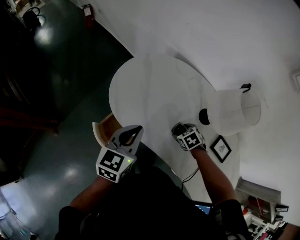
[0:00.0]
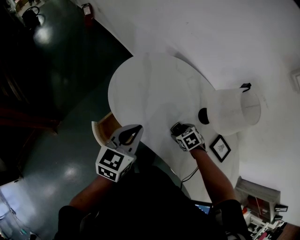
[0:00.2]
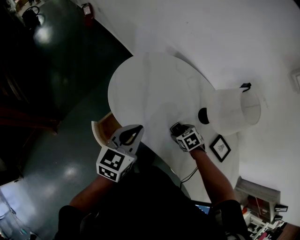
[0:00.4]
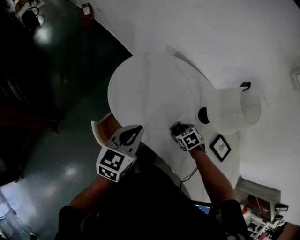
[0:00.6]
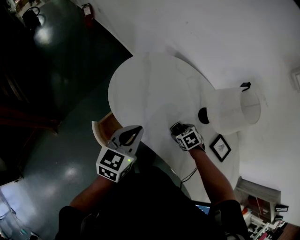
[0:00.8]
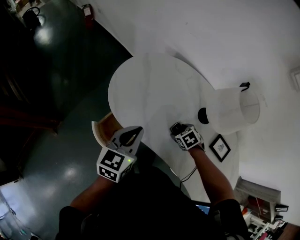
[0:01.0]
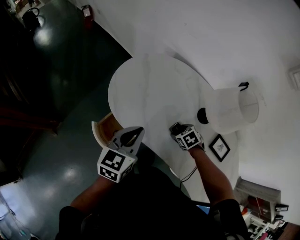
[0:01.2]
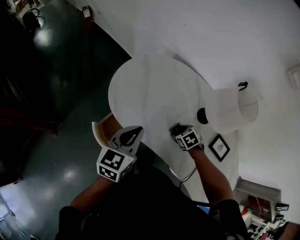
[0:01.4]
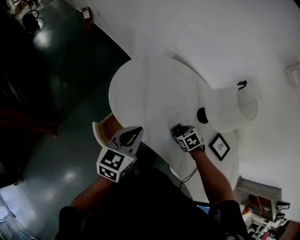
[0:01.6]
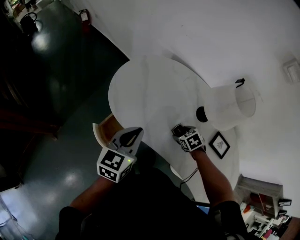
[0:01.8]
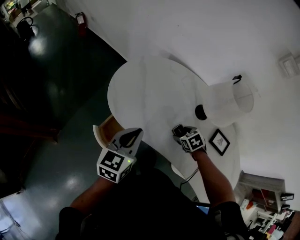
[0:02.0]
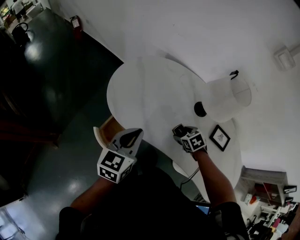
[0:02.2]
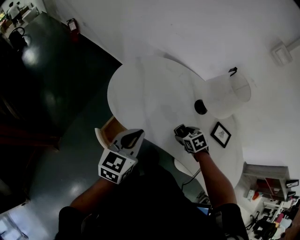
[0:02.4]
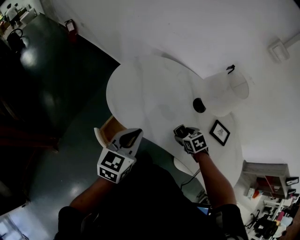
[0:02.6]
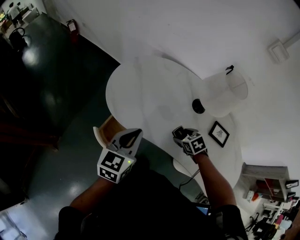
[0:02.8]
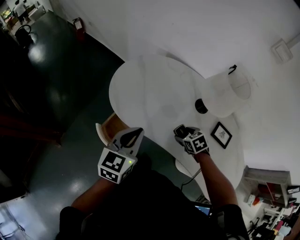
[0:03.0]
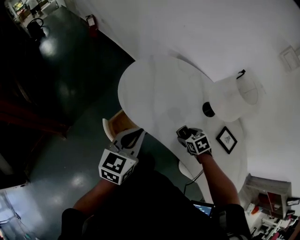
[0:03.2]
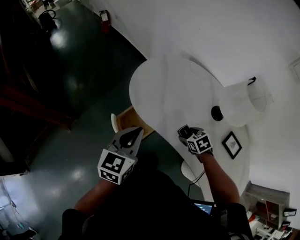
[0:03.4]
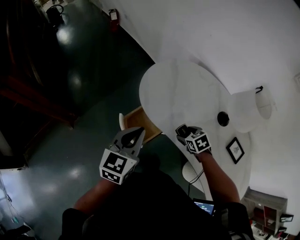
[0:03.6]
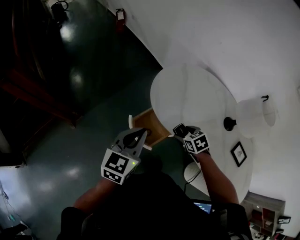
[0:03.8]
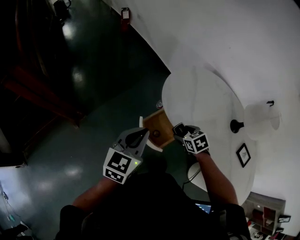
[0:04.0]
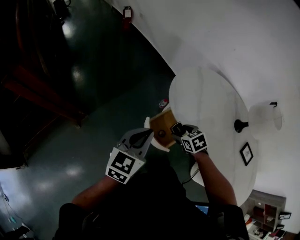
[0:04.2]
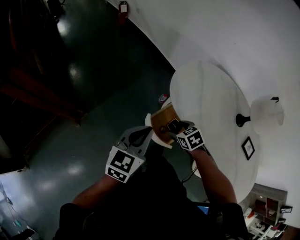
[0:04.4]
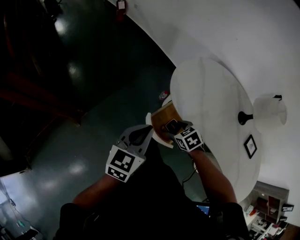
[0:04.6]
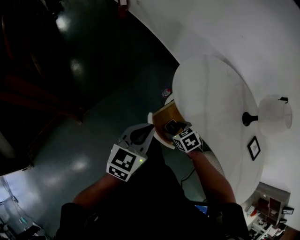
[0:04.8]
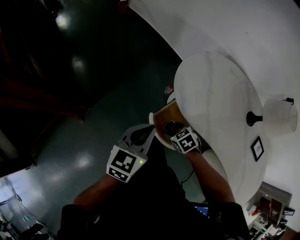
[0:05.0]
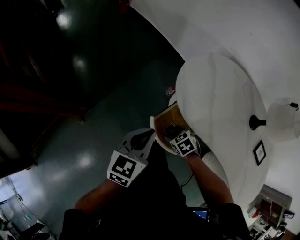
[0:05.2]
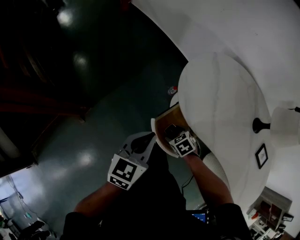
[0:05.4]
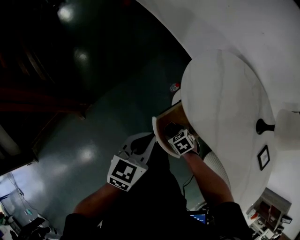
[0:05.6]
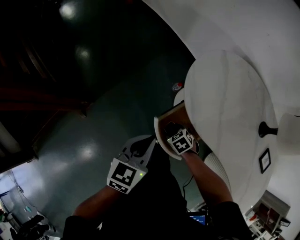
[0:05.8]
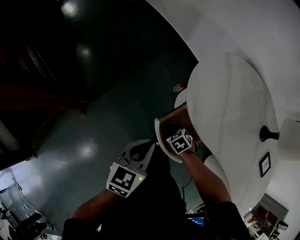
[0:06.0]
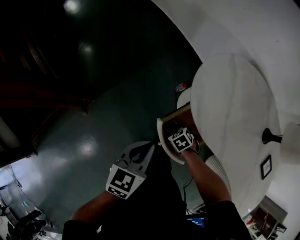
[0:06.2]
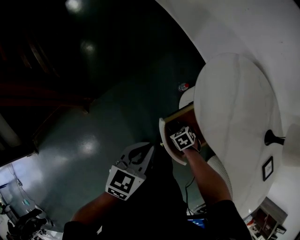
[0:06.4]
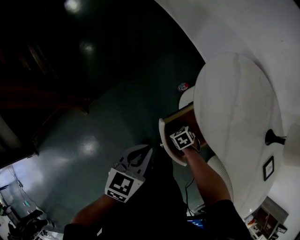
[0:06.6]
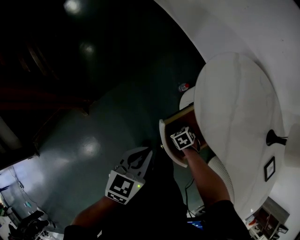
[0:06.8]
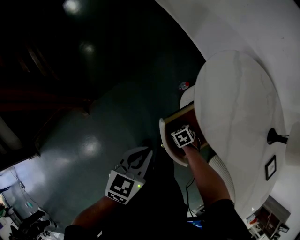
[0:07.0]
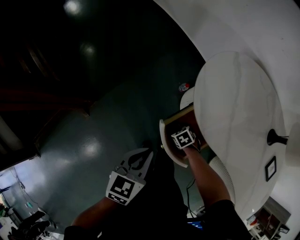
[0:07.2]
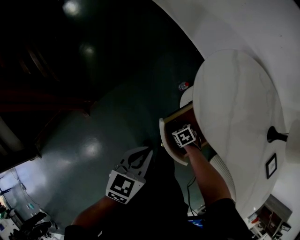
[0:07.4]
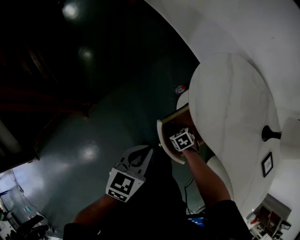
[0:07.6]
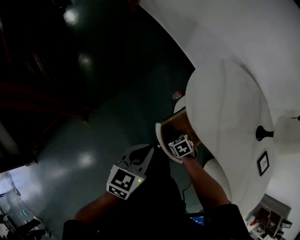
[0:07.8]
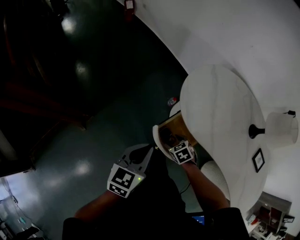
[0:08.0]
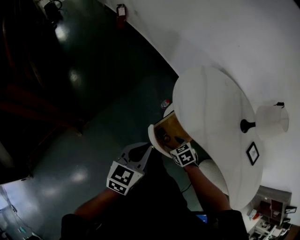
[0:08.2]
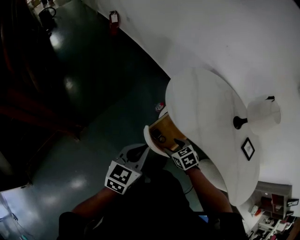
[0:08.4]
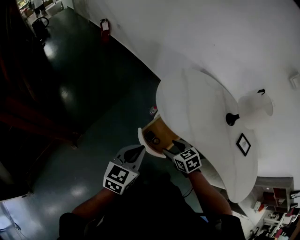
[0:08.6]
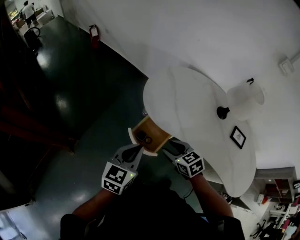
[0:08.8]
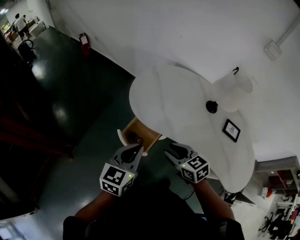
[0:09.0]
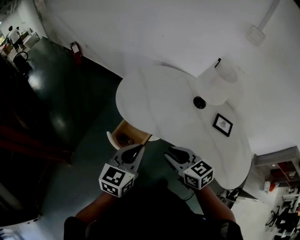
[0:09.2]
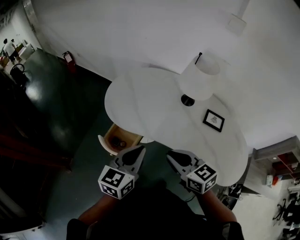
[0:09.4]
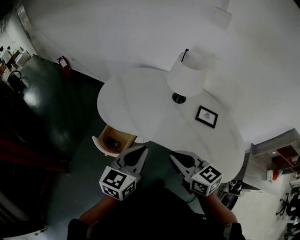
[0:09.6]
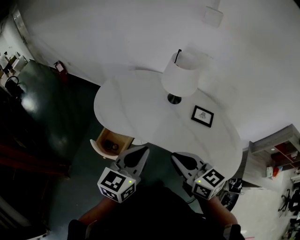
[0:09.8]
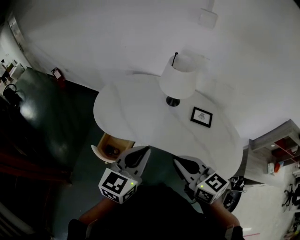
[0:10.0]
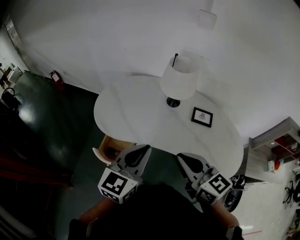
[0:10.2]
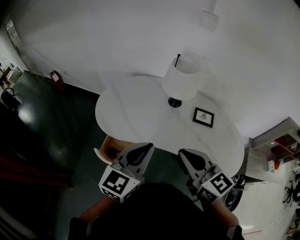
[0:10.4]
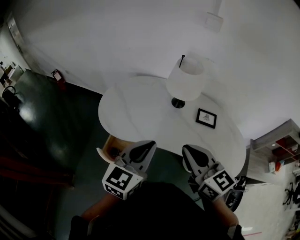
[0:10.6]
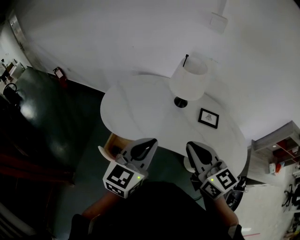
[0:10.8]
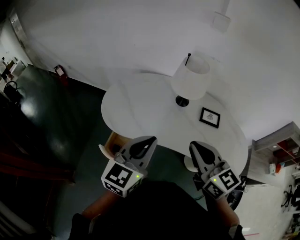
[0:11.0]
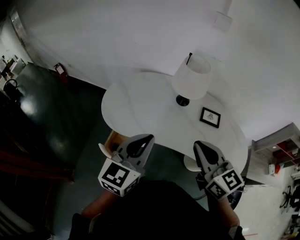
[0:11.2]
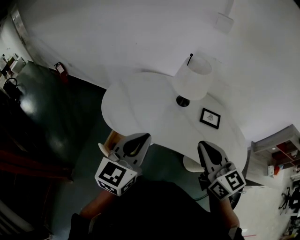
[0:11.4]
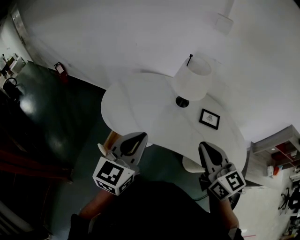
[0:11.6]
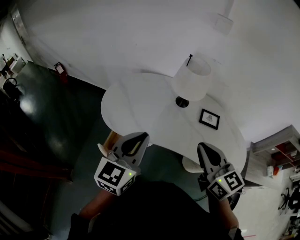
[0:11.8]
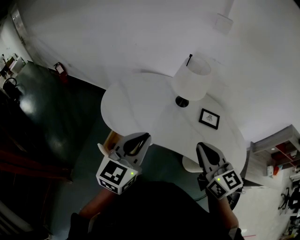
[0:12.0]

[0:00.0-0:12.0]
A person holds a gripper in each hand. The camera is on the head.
0:00.0 to 0:01.6: The grippers make only small movements.
0:01.6 to 0:03.0: The right gripper is displaced backward by some 5 cm.
0:03.0 to 0:04.4: Both grippers travel together to the left, some 30 cm.
0:04.4 to 0:06.0: The left gripper shifts approximately 10 cm downward. The right gripper travels downward by approximately 20 cm.
0:07.6 to 0:09.0: The left gripper ends up roughly 20 cm from where it was; the right gripper shifts approximately 35 cm upward, tips its fingers upward by some 40 degrees, and closes.
0:09.0 to 0:10.4: The two grippers go about 25 cm to the right and upward. The left gripper swivels some 30 degrees. Meanwhile the right gripper rotates roughly 40 degrees, and closes up.
0:10.4 to 0:12.0: The left gripper changes place by roughly 5 cm.

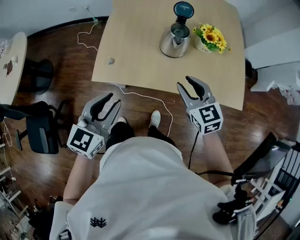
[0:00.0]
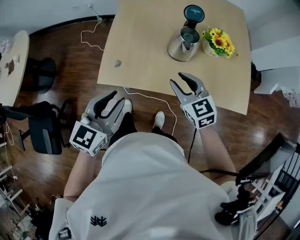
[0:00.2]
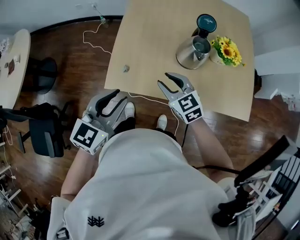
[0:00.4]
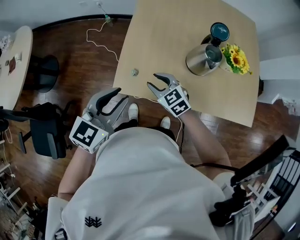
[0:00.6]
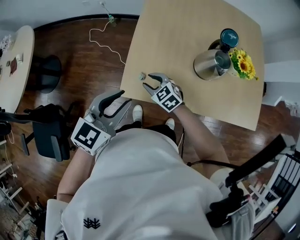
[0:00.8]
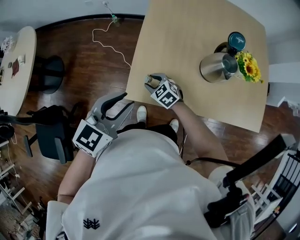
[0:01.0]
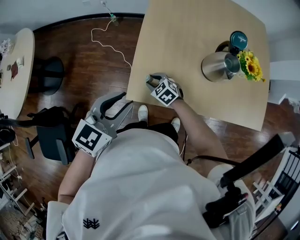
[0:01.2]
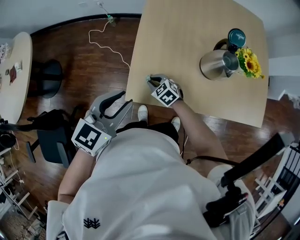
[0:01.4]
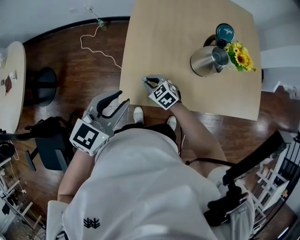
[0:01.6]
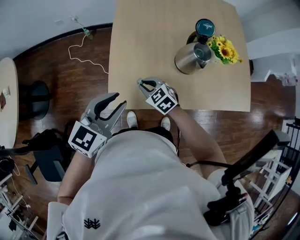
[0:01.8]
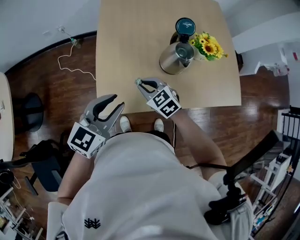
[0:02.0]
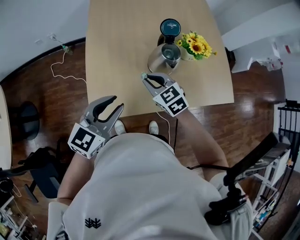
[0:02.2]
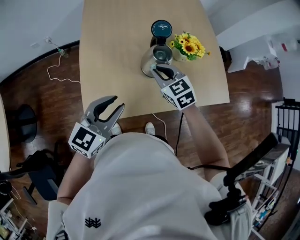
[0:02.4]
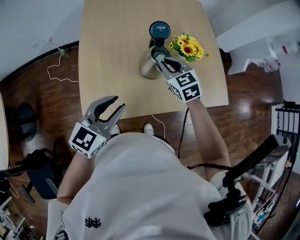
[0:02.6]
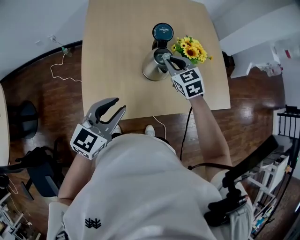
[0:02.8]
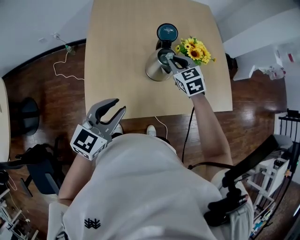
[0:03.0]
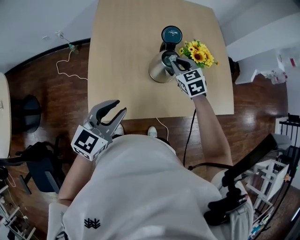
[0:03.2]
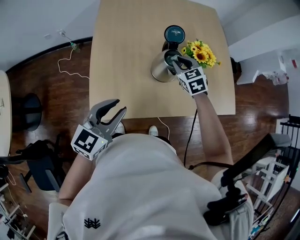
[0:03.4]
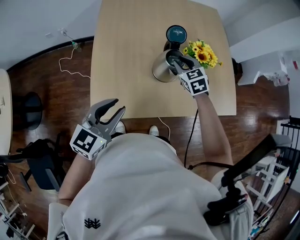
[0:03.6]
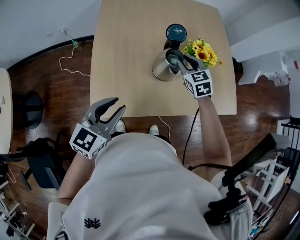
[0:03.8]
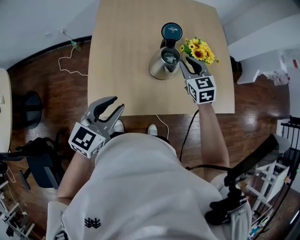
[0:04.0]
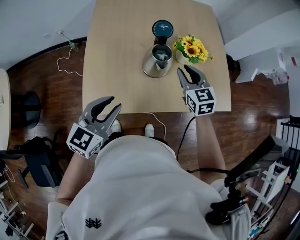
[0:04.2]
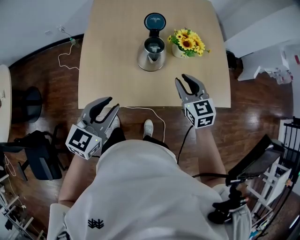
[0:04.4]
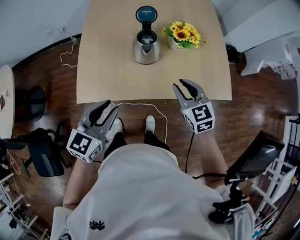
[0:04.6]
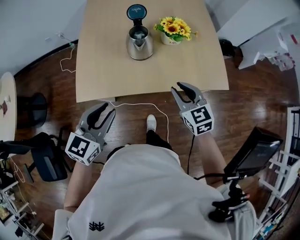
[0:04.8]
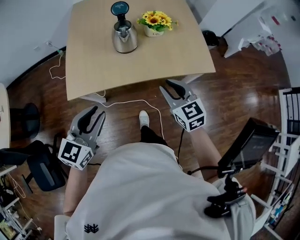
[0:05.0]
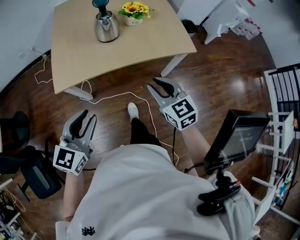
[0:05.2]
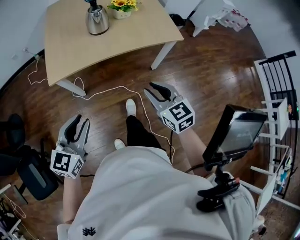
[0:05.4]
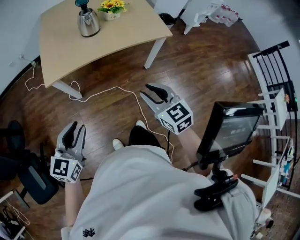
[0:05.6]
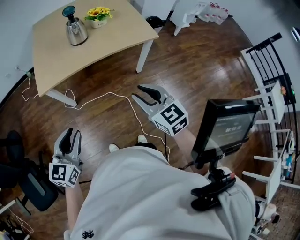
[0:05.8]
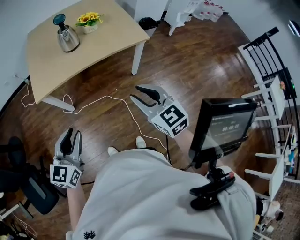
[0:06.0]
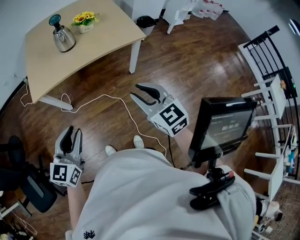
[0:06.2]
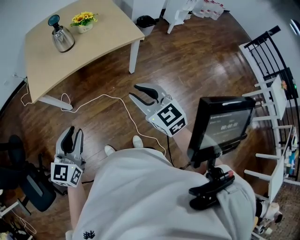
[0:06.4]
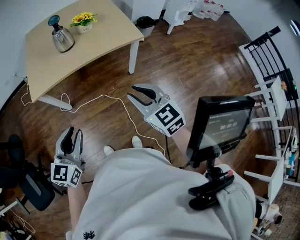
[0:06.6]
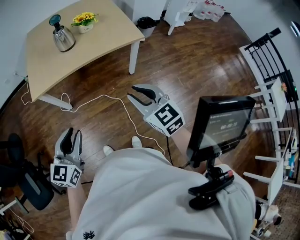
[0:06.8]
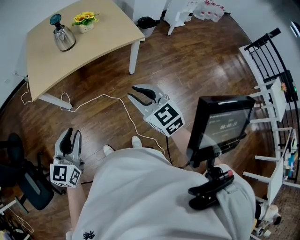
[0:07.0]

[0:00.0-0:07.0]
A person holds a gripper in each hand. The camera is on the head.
0:00.0 to 0:01.4: The right gripper shifts approximately 40 cm to the left, downward and forward, swivels roughly 30 degrees, and closes up, while the left gripper heads forward and to the left, covering approximately 20 cm.
0:01.4 to 0:02.8: The right gripper changes place by some 40 cm, and swivels roughly 40 degrees, while the left gripper ends up approximately 20 cm from where it was.
0:02.8 to 0:04.2: The right gripper is displaced to the right by some 5 cm.
0:04.2 to 0:05.6: Both grippers are carried backward, some 50 cm.
0:05.6 to 0:07.0: The left gripper moves to the right, roughly 15 cm. Meanwhile the right gripper goes approximately 15 cm to the right, backward and upward.

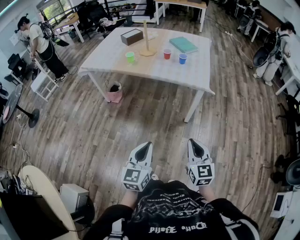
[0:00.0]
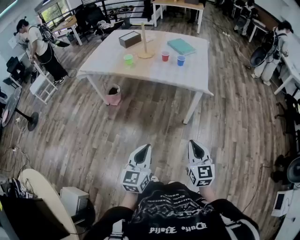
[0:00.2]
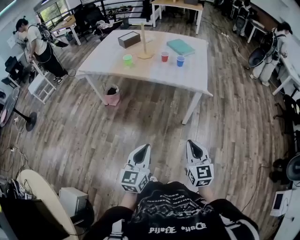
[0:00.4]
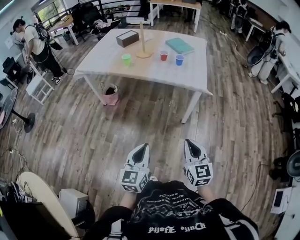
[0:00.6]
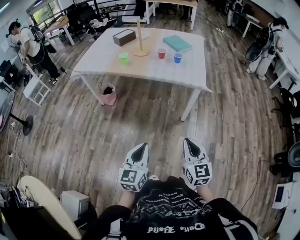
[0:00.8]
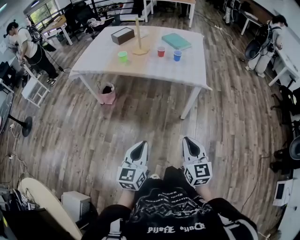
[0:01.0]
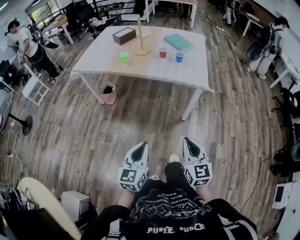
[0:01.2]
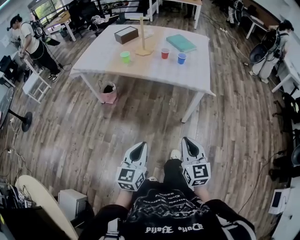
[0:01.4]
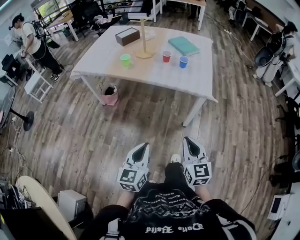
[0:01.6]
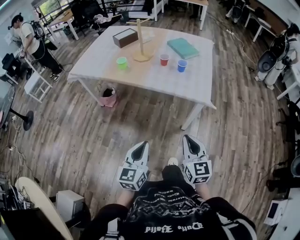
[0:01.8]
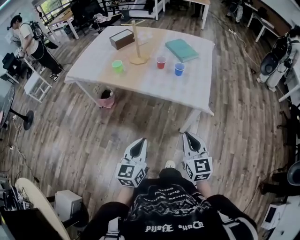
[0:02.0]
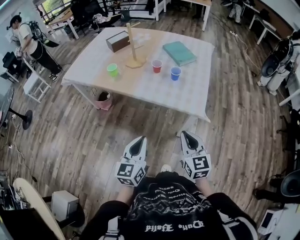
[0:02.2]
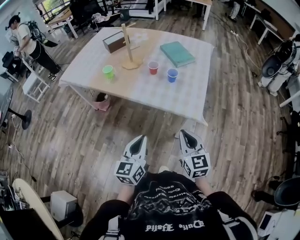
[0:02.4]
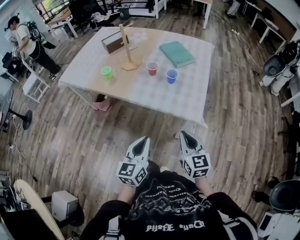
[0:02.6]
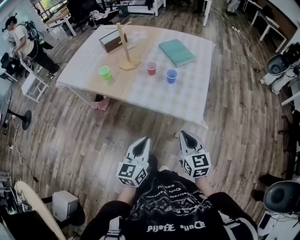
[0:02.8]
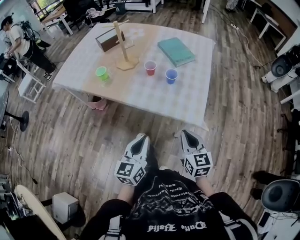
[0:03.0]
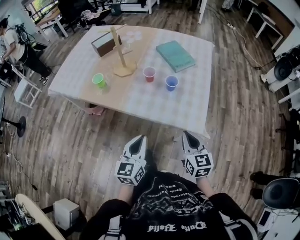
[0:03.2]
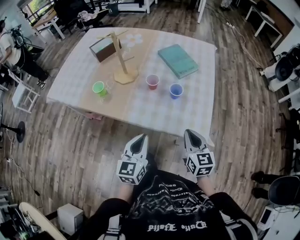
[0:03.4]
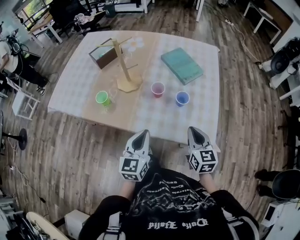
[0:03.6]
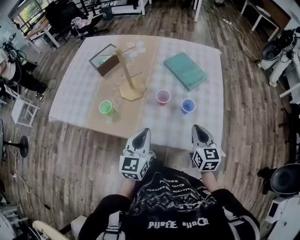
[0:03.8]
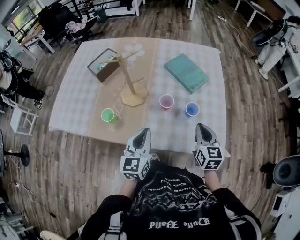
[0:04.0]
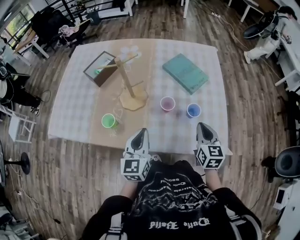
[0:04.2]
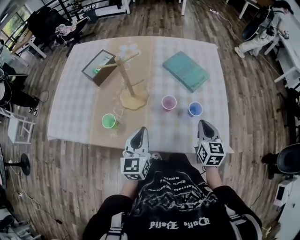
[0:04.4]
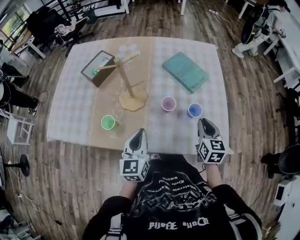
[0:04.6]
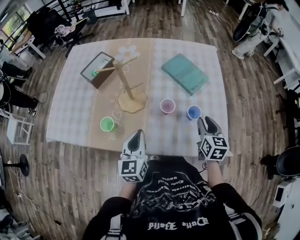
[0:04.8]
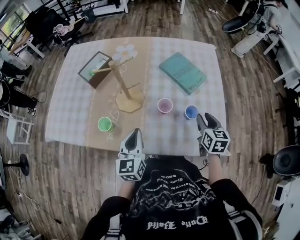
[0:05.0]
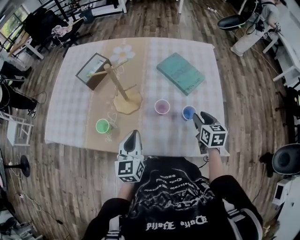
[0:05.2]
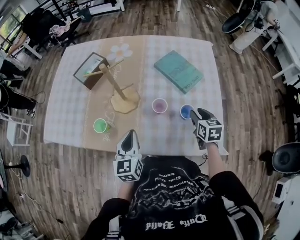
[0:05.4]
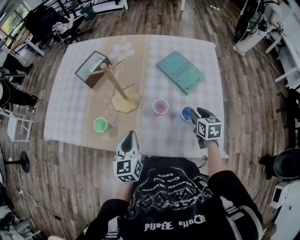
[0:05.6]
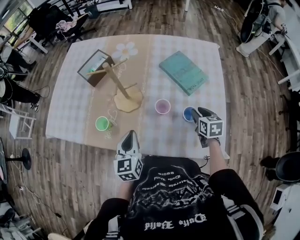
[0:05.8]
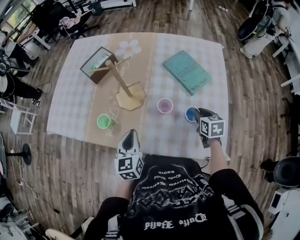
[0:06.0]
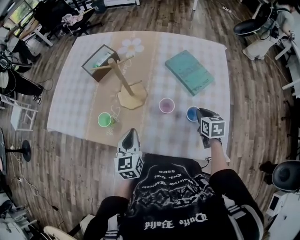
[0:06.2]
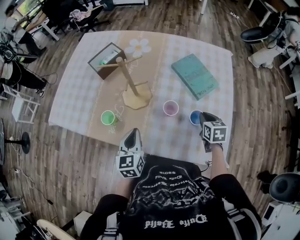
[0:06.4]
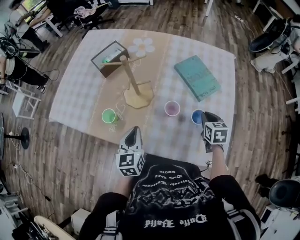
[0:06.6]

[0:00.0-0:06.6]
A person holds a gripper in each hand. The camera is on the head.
0:00.0 to 0:01.6: Both grippers travel together forward, about 15 cm.
0:01.6 to 0:03.2: The two grippers travel together, forward, roughly 40 cm.
0:03.2 to 0:05.0: The left gripper travels forward and to the left by approximately 35 cm. The right gripper moves forward, approximately 30 cm, rotates some 30 degrees, and opens its fingers.
0:05.0 to 0:06.6: The right gripper moves forward and downward, roughly 10 cm, and closes its fingers.
